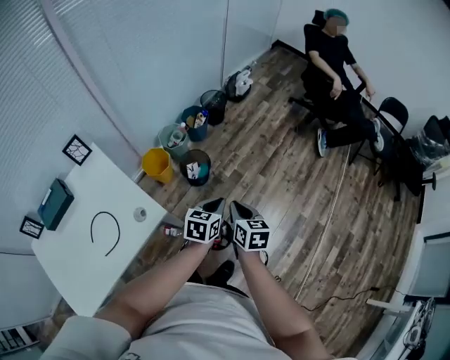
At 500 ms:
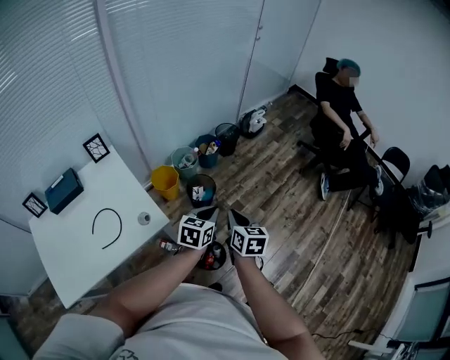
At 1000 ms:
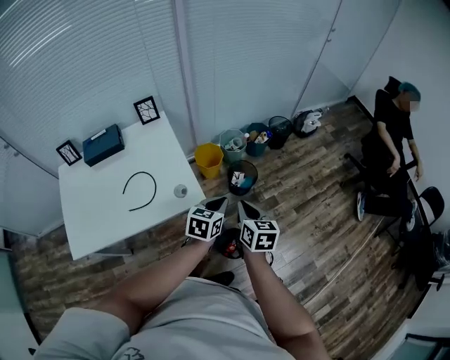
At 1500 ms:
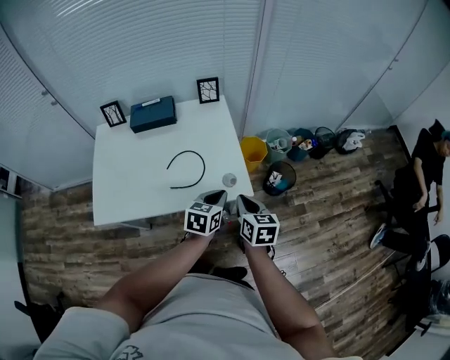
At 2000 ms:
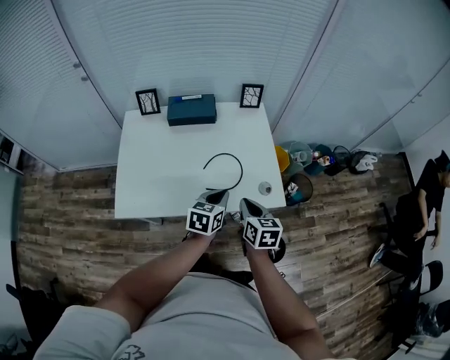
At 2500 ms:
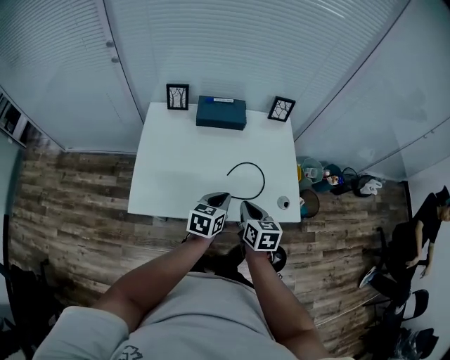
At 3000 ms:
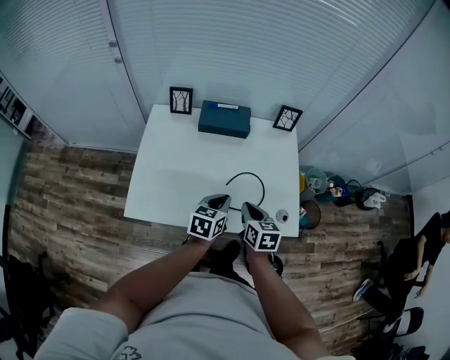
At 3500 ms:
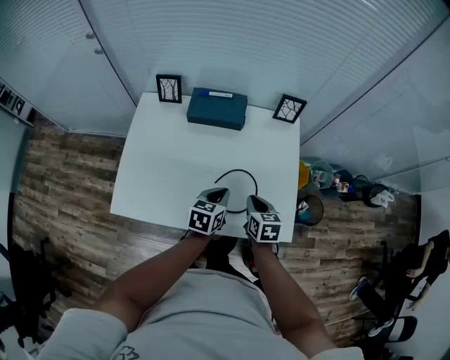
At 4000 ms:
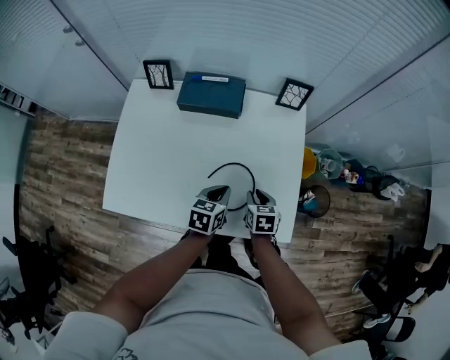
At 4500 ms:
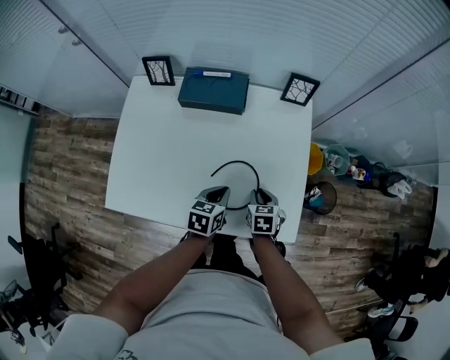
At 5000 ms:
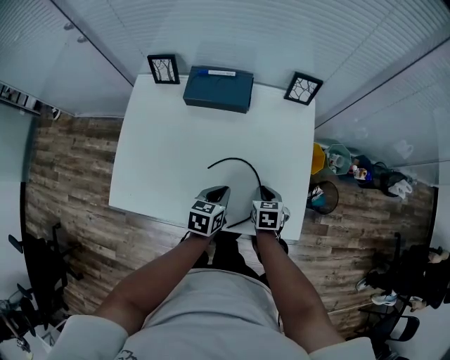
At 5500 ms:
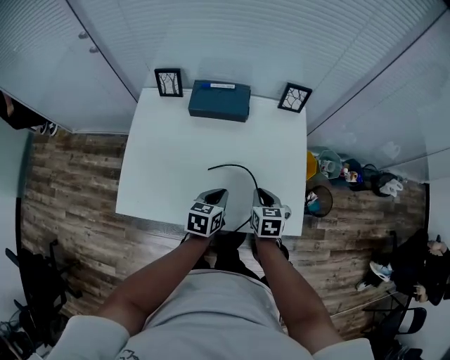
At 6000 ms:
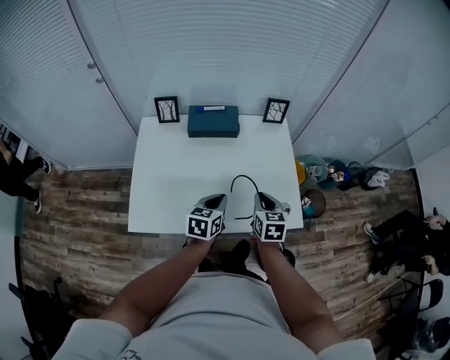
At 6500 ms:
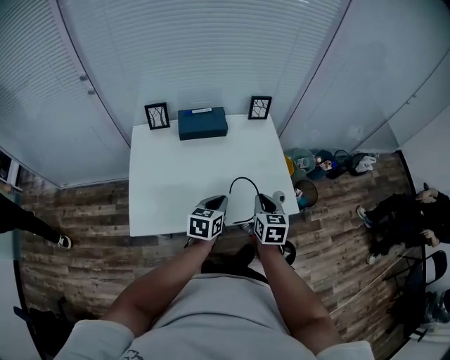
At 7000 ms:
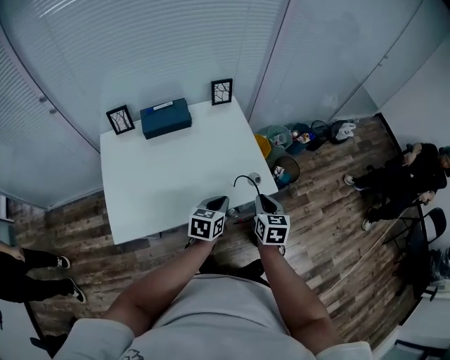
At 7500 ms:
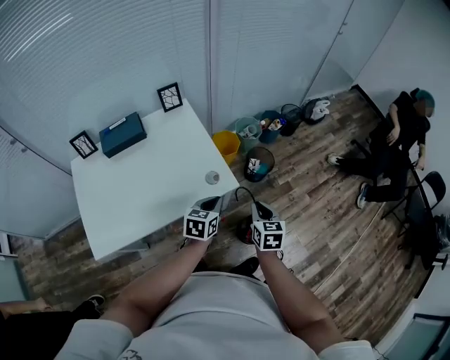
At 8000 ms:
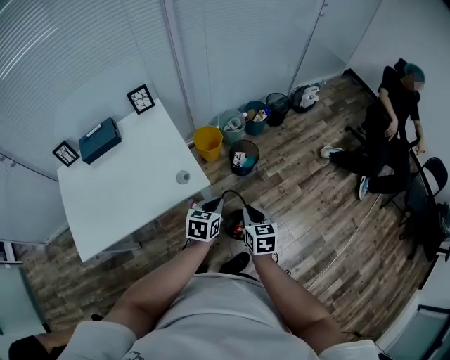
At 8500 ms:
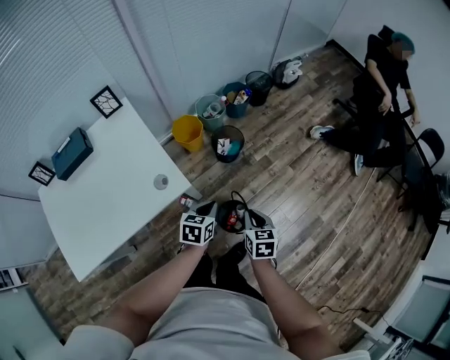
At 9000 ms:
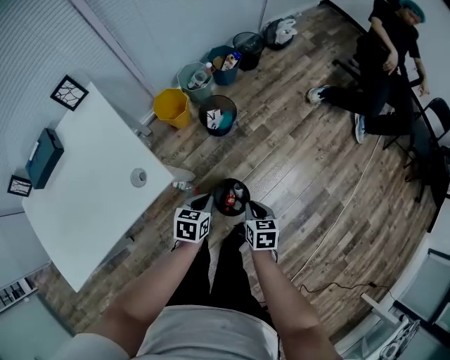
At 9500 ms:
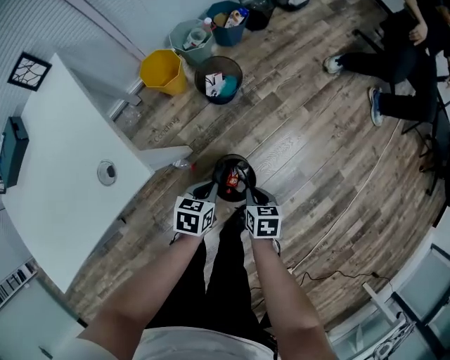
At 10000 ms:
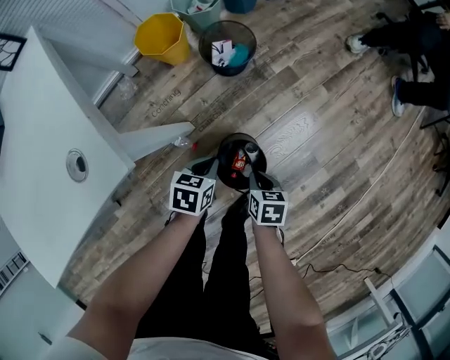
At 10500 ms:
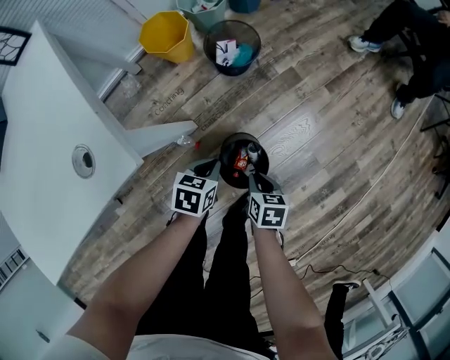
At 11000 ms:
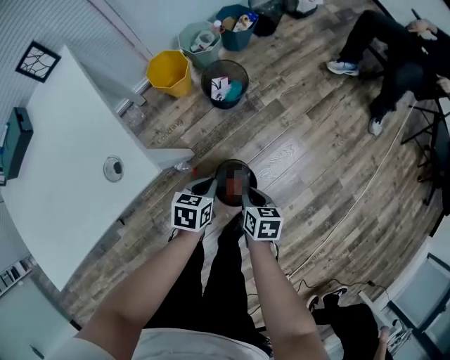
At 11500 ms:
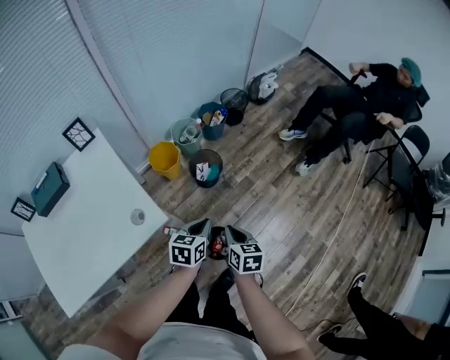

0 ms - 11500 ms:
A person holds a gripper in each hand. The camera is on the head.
0 ms - 2000 ms: Both grippers are carried some 50 cm. The left gripper turns by about 50 degrees; the right gripper turns by about 50 degrees.
2000 ms - 4000 ms: Both grippers move forward and downward, some 20 cm. The right gripper swivels approximately 30 degrees.
4000 ms - 6000 ms: The left gripper travels upward, to the left and backward by some 15 cm; the right gripper travels upward and backward by some 15 cm, and changes its angle by about 20 degrees.
6000 ms - 7500 ms: The two grippers go approximately 30 cm to the right. The right gripper rotates some 30 degrees, while the left gripper rotates roughly 30 degrees.
7500 ms - 9500 ms: Both grippers travel together downward and to the right, roughly 40 cm. The right gripper rotates approximately 30 degrees. Meanwhile the left gripper changes its angle by roughly 30 degrees.
9500 ms - 11500 ms: The grippers both shift upward by some 25 cm.

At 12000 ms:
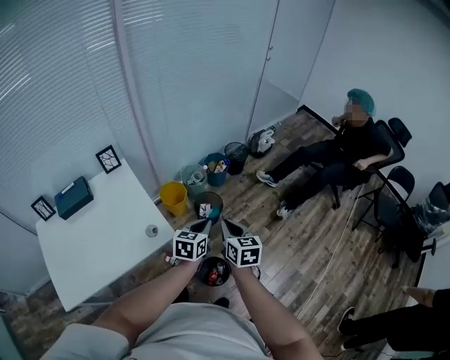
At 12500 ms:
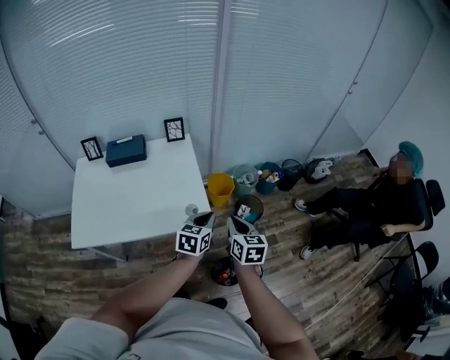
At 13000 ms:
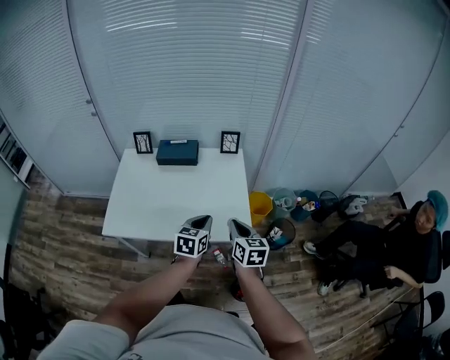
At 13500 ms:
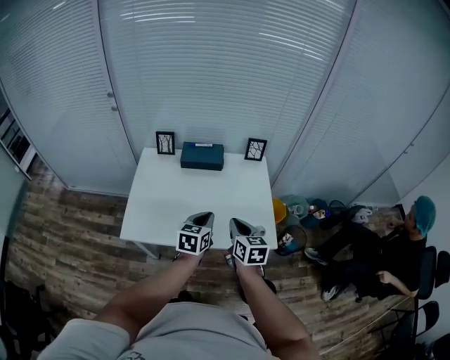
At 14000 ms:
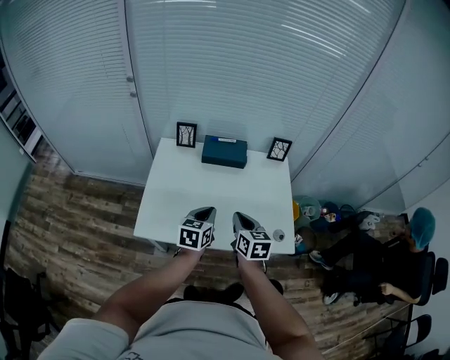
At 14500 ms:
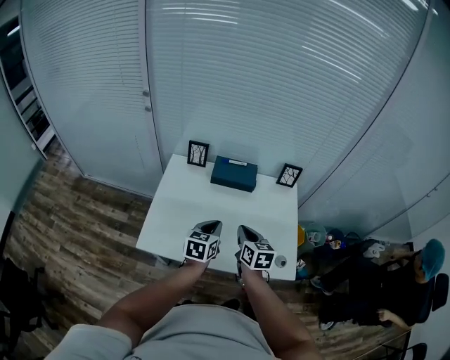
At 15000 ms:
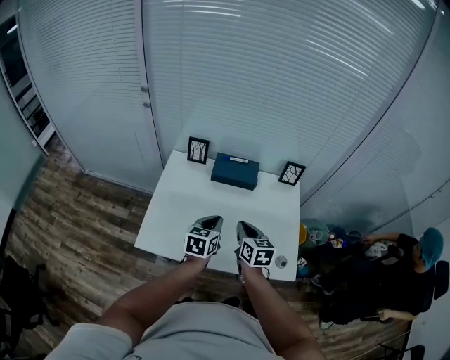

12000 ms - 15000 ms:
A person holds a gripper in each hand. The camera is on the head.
12000 ms - 13500 ms: The pair of grippers is taken some 50 cm. The left gripper changes its angle by roughly 40 degrees, while the right gripper changes its angle by some 40 degrees.
13500 ms - 15000 ms: The grippers both shift forward and to the left by approximately 15 cm.

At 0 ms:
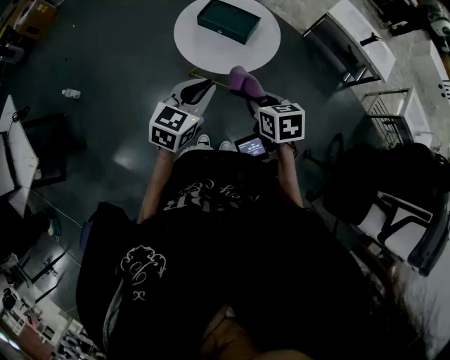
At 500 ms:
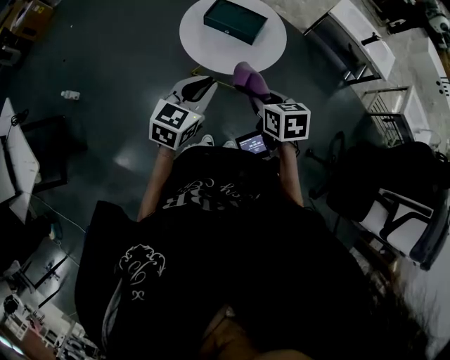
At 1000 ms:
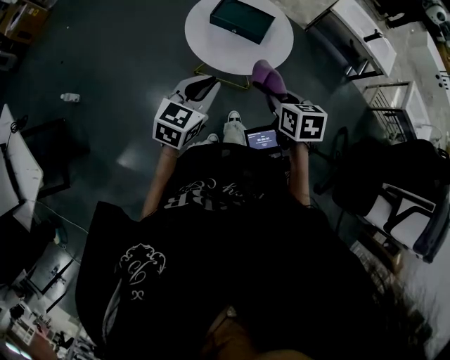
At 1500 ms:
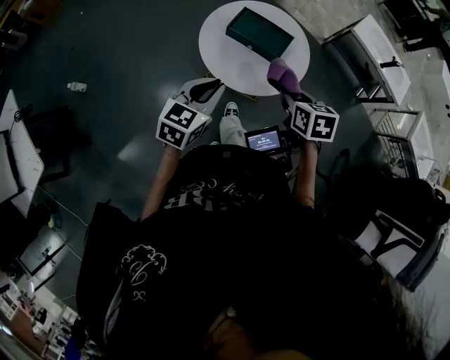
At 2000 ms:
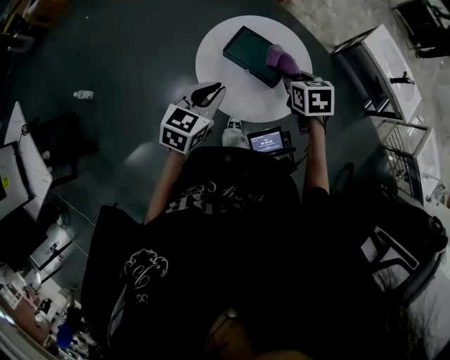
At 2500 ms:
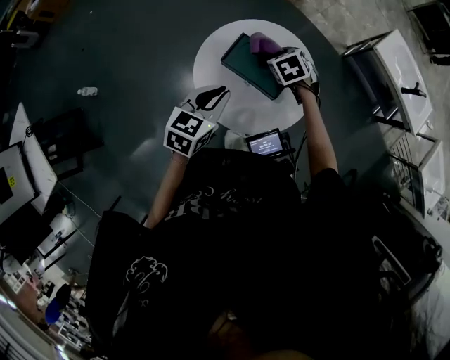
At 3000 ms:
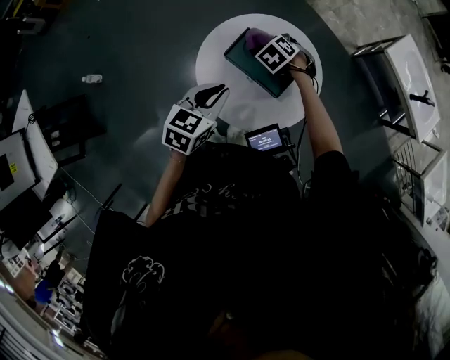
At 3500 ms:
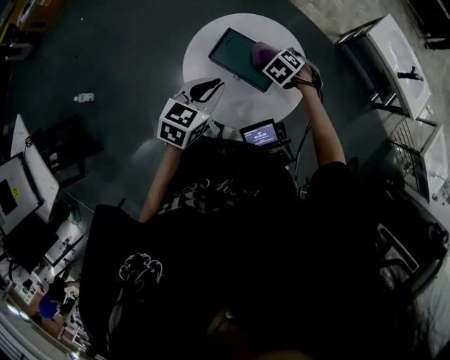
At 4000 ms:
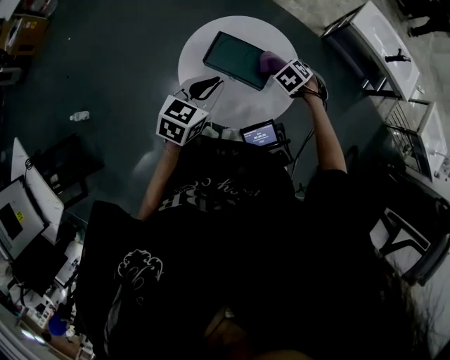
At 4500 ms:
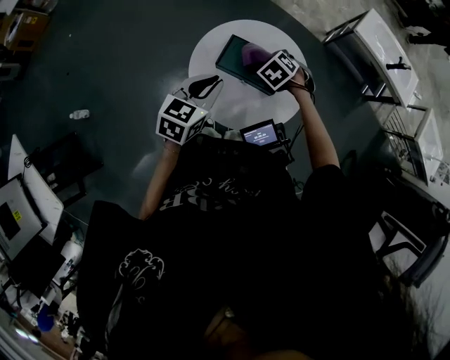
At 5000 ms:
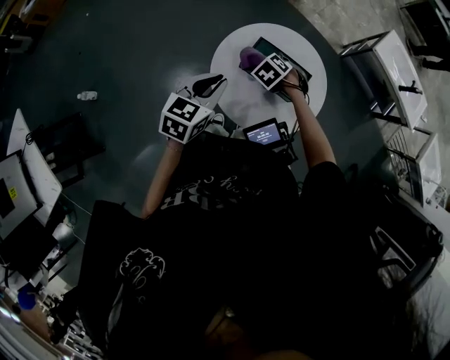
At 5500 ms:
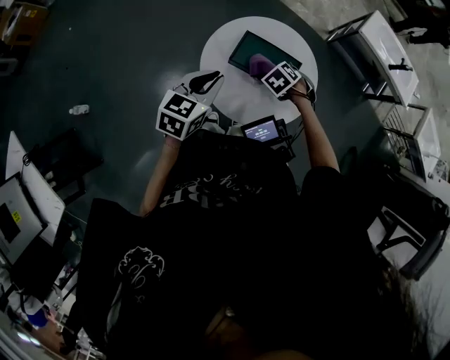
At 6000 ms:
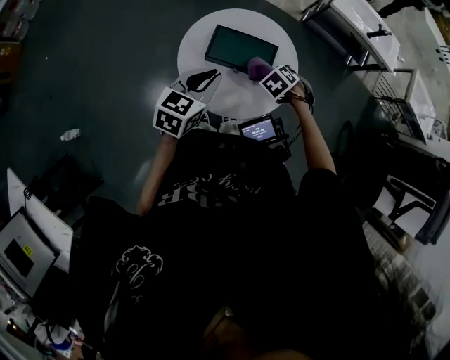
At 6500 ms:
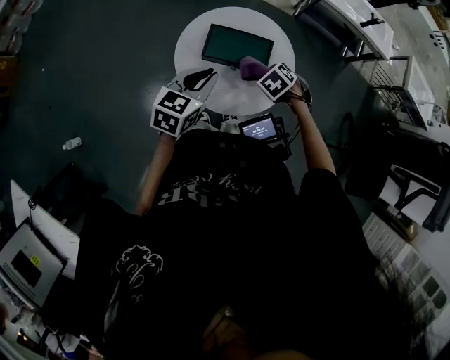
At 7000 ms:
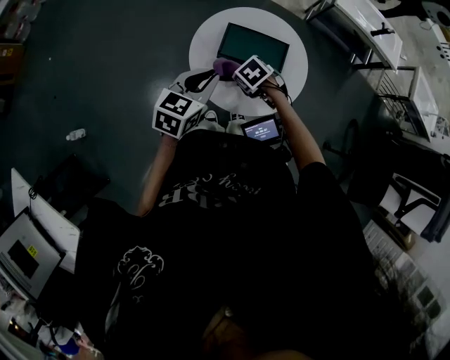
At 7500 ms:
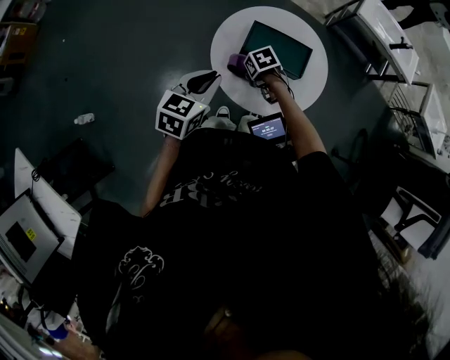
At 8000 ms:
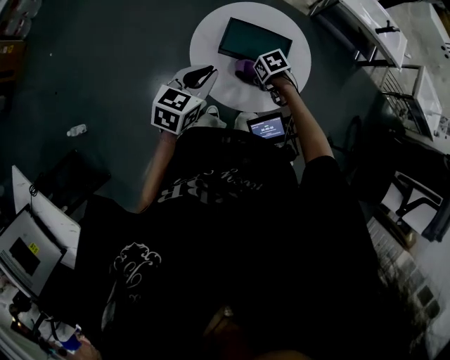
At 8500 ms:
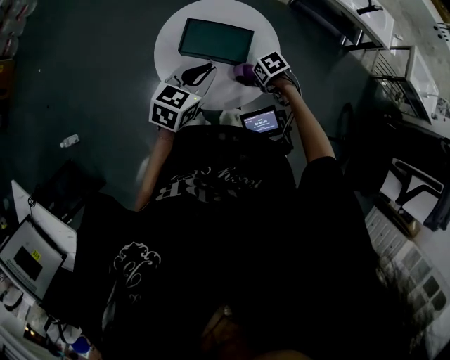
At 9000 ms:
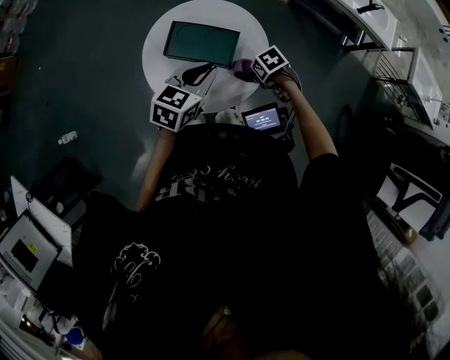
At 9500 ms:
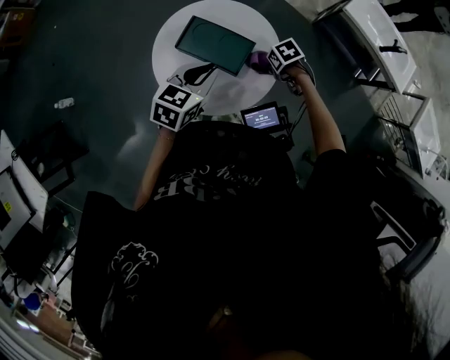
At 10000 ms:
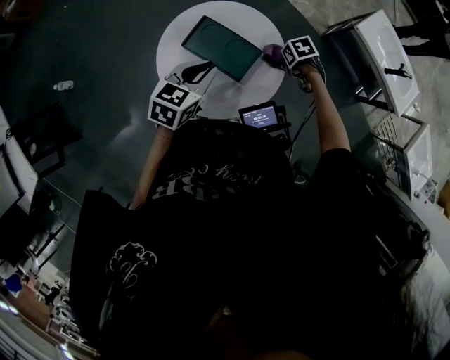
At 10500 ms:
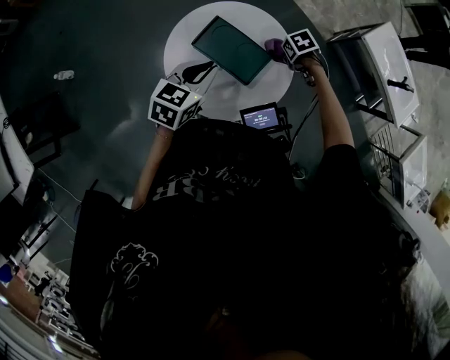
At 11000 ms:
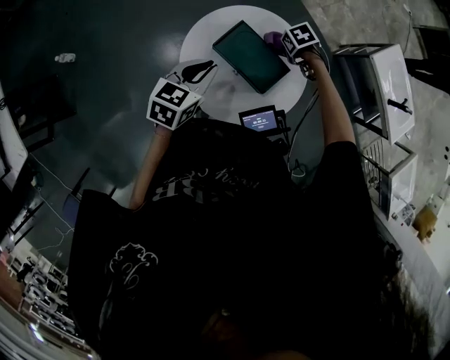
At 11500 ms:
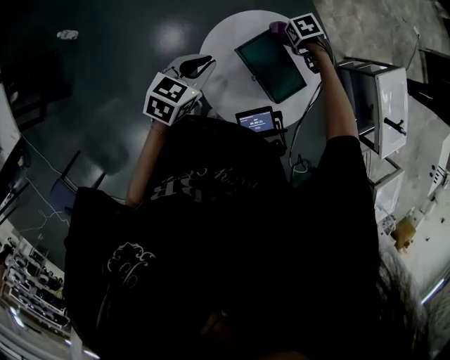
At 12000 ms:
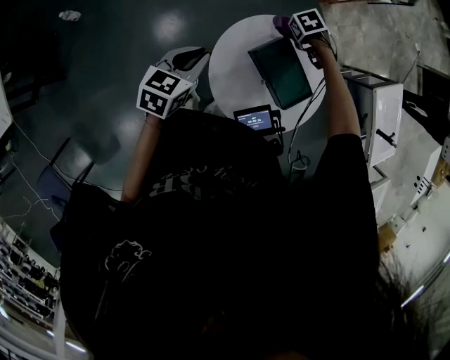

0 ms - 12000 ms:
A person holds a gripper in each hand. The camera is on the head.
0 ms - 2000 ms: The left gripper changes place by about 25 cm.
2000 ms - 4000 ms: The left gripper moves approximately 10 cm.
8000 ms - 10000 ms: The left gripper ends up some 15 cm from where it was.
10000 ms - 12000 ms: The left gripper moves approximately 25 cm, and swivels approximately 20 degrees.
